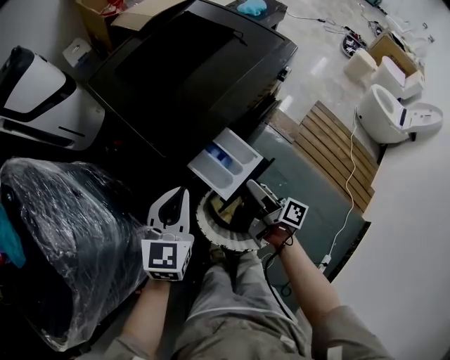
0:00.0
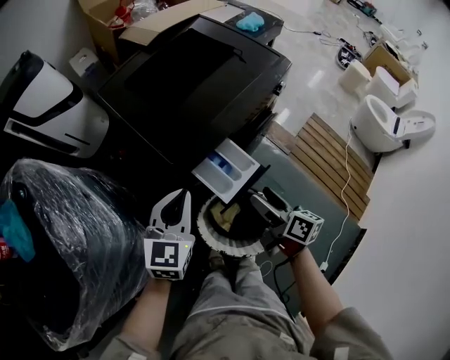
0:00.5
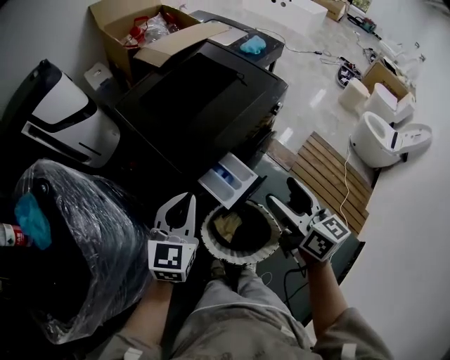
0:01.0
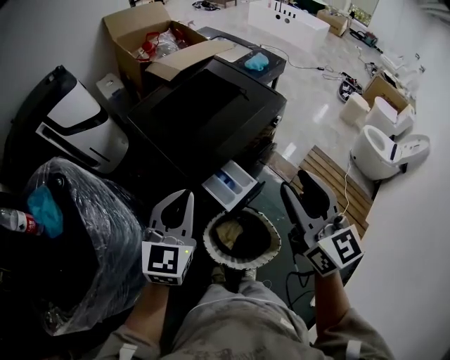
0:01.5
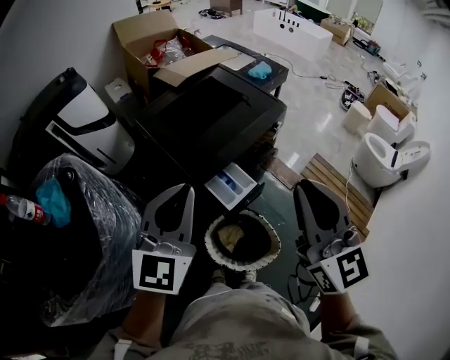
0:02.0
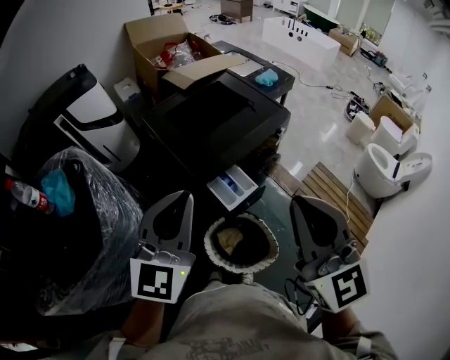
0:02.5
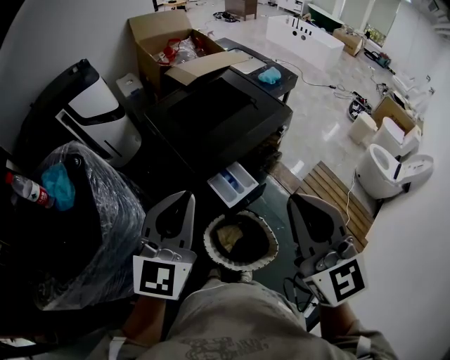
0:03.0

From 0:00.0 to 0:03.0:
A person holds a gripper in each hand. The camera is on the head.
From 0:00.0 to 0:01.5: The right gripper heads upward, covering roughly 35 cm, twists some 80 degrees counterclockwise, seen from behind, and closes; the left gripper is displaced upward by about 20 cm.
From 0:01.5 to 0:03.0: Both grippers travel together upward and backward, approximately 10 cm. The right gripper closes its fingers.

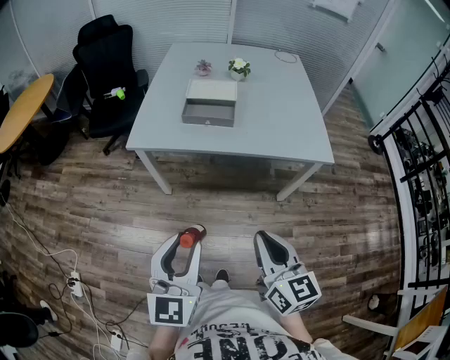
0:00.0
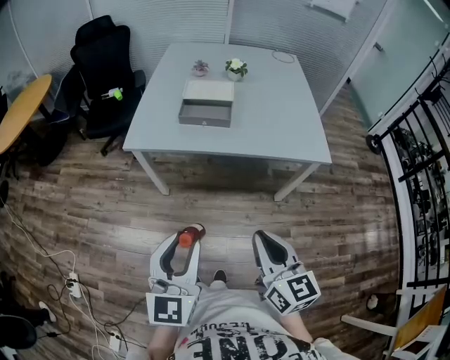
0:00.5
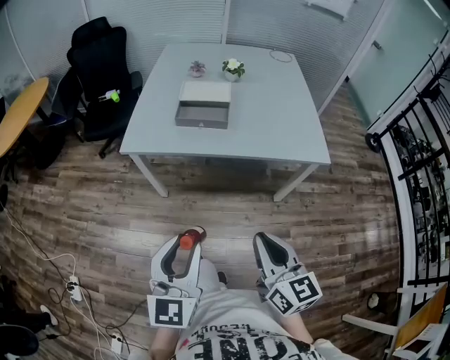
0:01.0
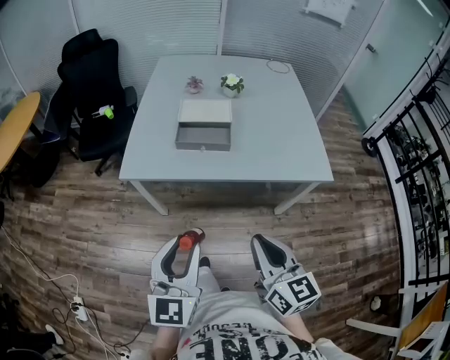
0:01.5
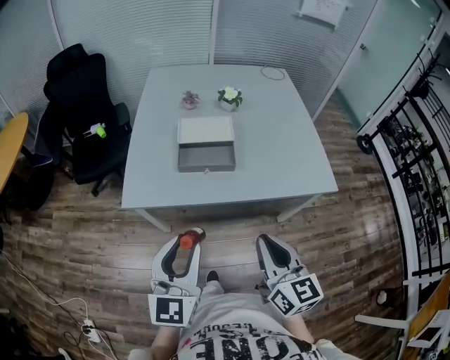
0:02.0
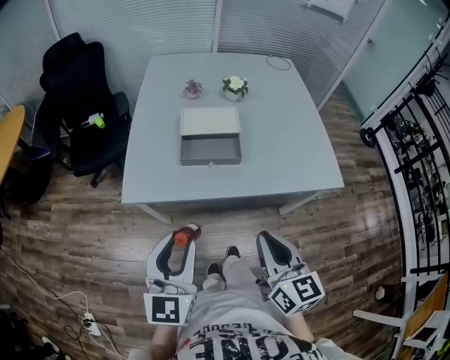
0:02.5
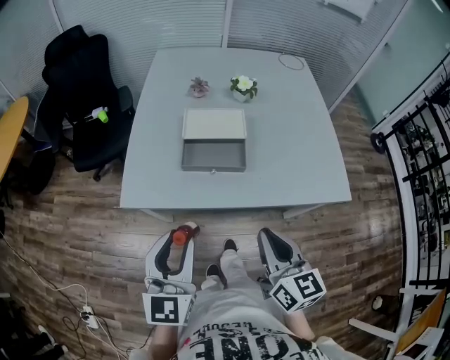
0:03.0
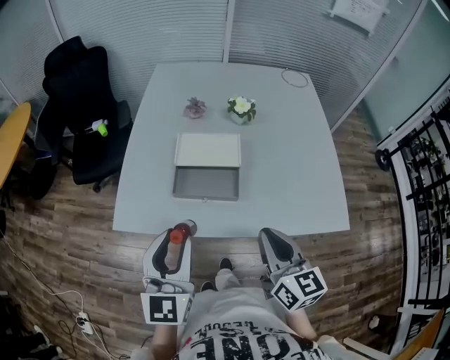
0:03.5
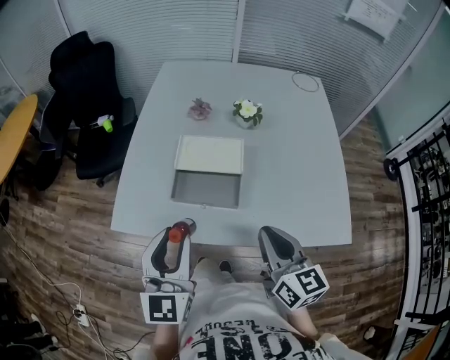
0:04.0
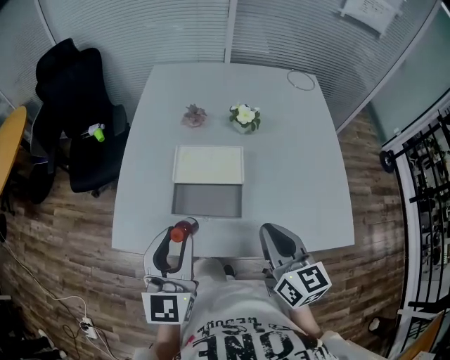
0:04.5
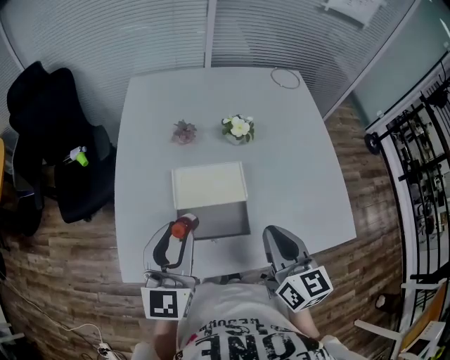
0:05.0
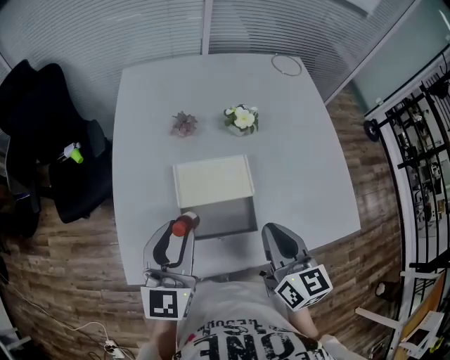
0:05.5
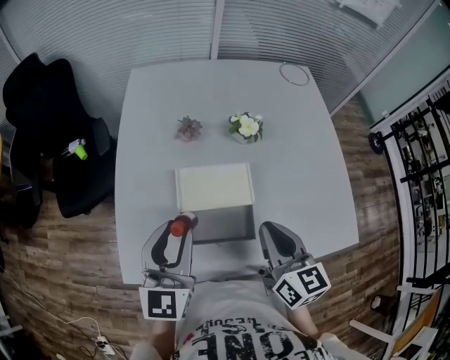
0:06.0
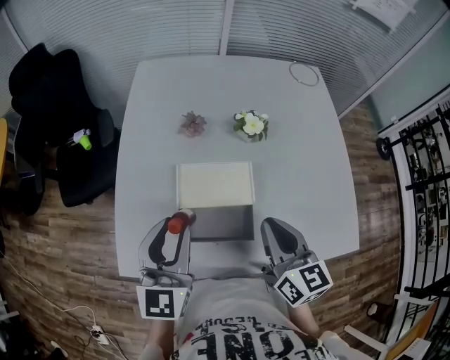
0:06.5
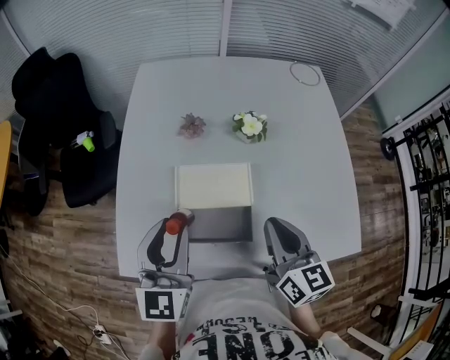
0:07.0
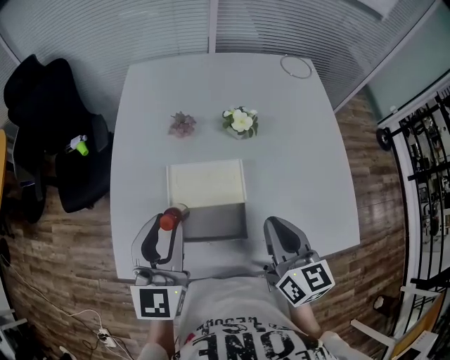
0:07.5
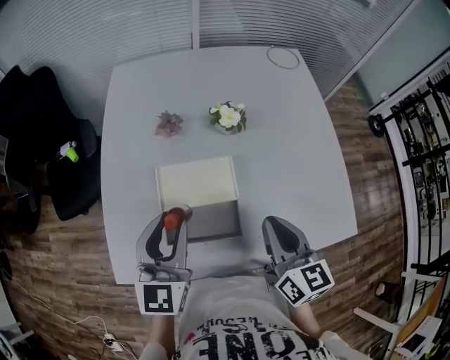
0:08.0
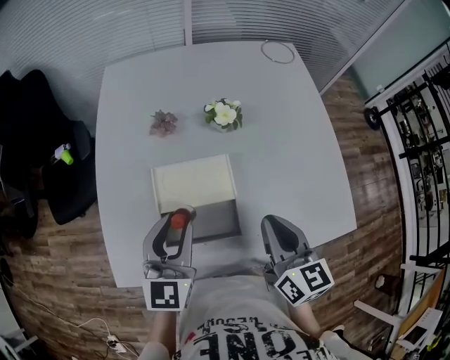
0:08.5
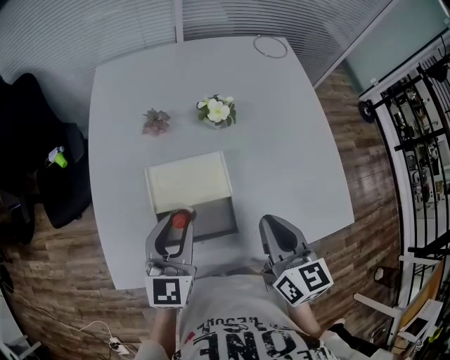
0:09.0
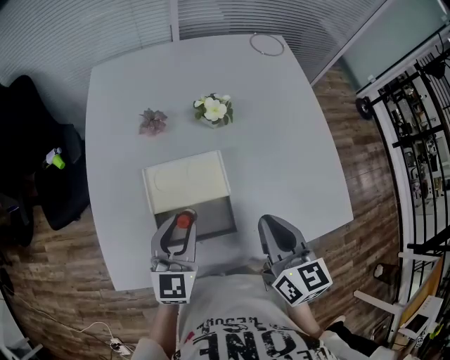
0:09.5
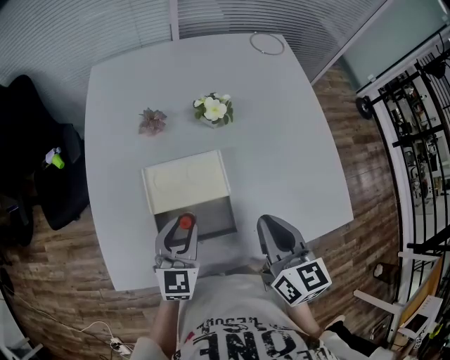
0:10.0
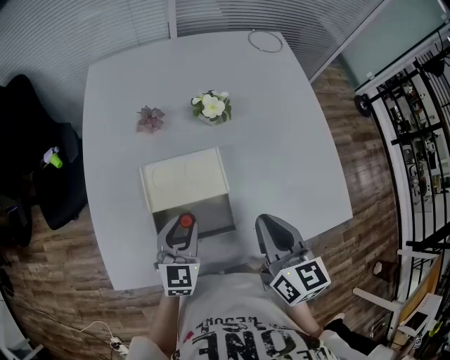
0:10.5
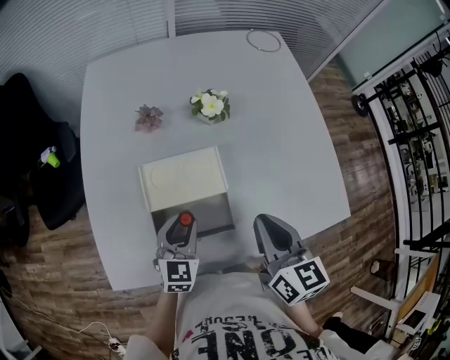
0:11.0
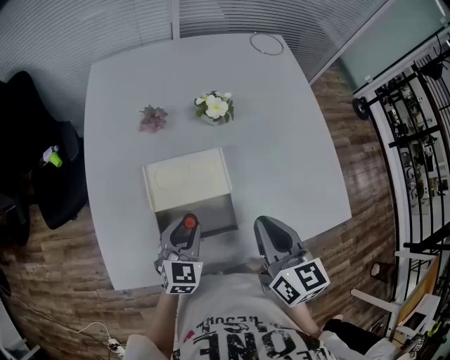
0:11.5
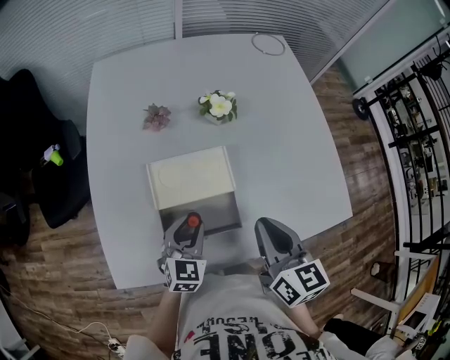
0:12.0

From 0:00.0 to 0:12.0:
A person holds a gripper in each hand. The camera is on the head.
From 0:00.0 to 0:02.0: Both grippers move forward, approximately 20 cm.
From 0:02.0 to 0:04.0: The grippers both shift forward by approximately 20 cm.
From 0:04.0 to 0:06.0: The left gripper shifts about 20 cm forward; the right gripper travels forward and to the left by some 15 cm.
From 0:06.0 to 0:08.0: The right gripper travels to the right by some 5 cm. The left gripper ends up roughly 5 cm from where it was.
From 0:08.0 to 0:10.0: The left gripper shifts about 15 cm downward.
From 0:10.0 to 0:12.0: The left gripper travels downward by approximately 5 cm.

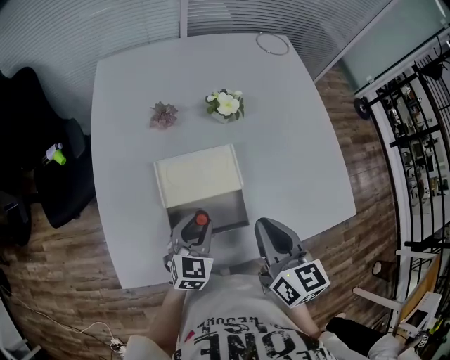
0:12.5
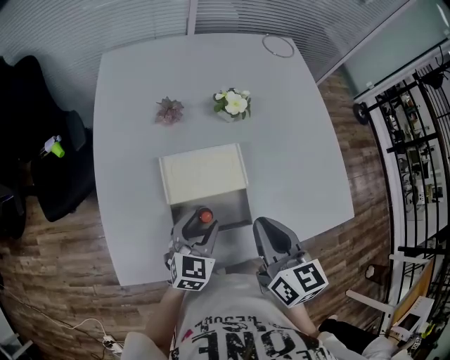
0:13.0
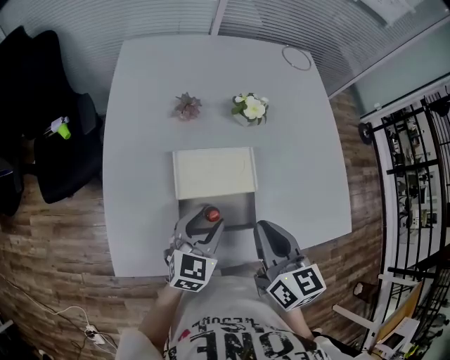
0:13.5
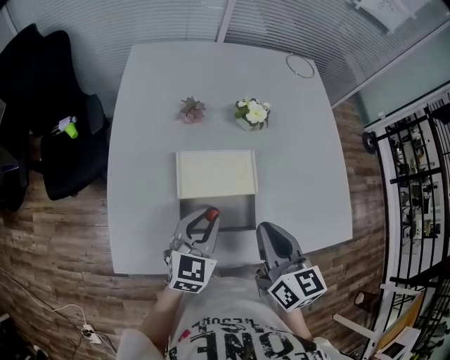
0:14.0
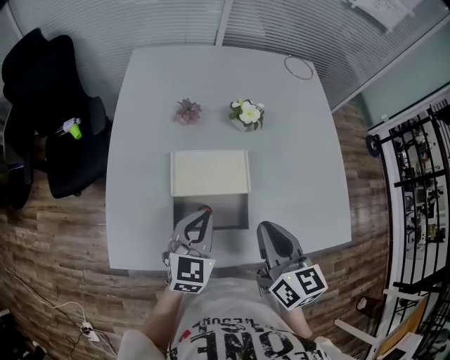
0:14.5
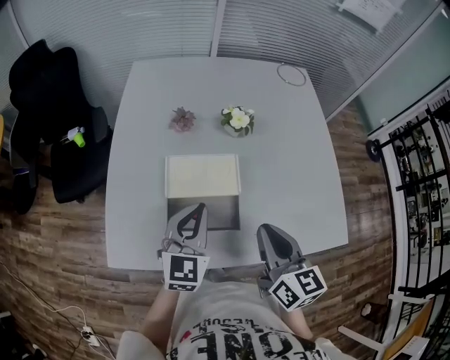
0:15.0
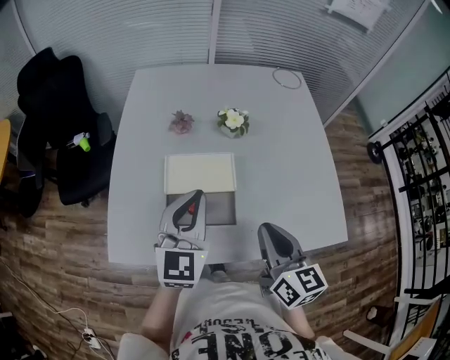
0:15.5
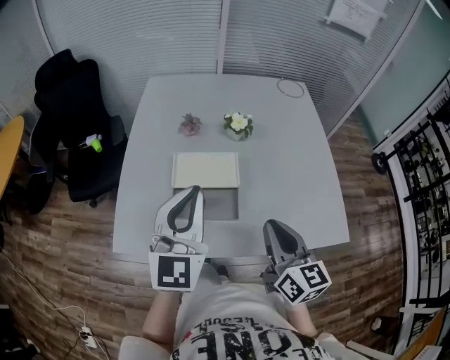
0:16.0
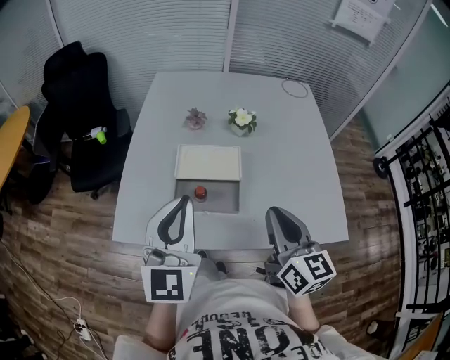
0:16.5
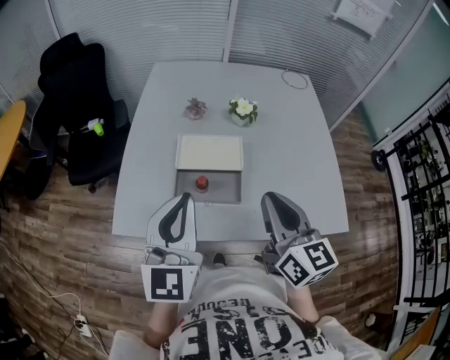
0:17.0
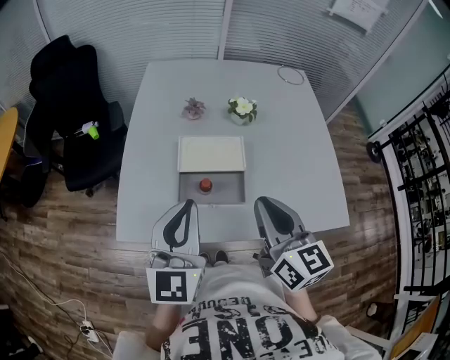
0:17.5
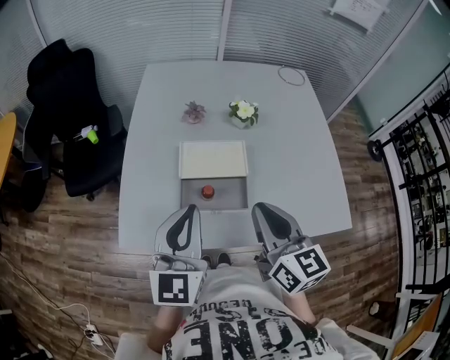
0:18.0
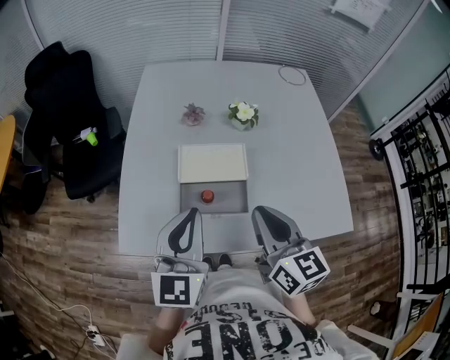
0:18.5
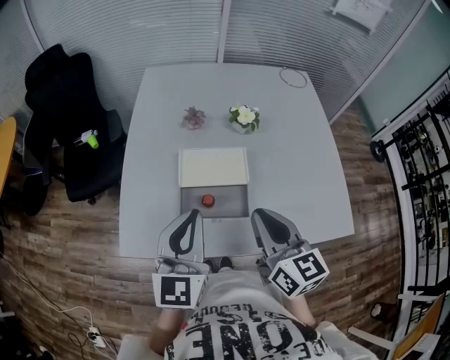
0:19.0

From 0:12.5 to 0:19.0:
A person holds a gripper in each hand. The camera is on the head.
From 0:12.5 to 0:14.5: The left gripper is displaced upward by approximately 10 cm, and closes.
From 0:14.5 to 0:17.0: The right gripper shifts about 10 cm upward and backward; the left gripper is displaced upward and backward by approximately 20 cm, and changes its angle by about 30 degrees.
From 0:17.0 to 0:19.0: The right gripper shifts by about 5 cm. Meanwhile the left gripper shifts approximately 5 cm forward.

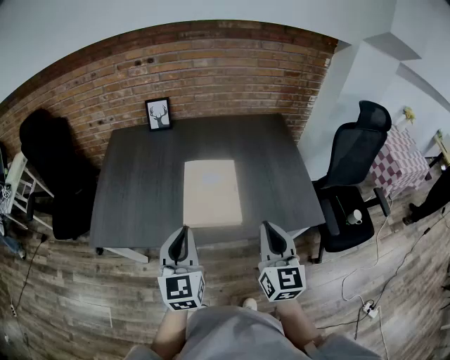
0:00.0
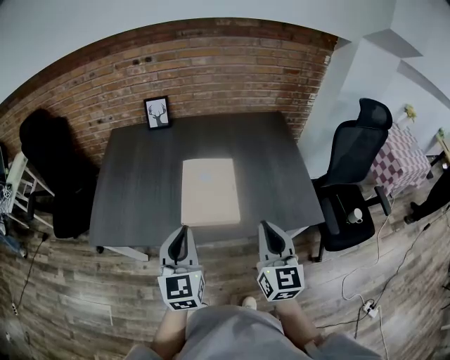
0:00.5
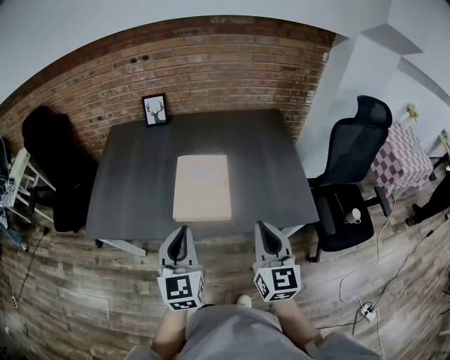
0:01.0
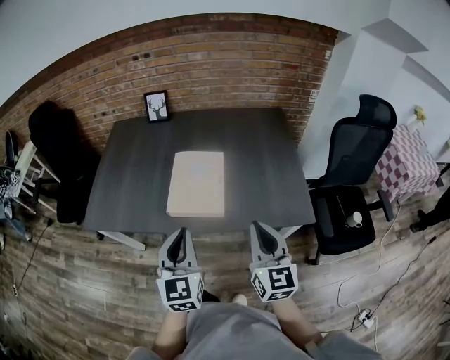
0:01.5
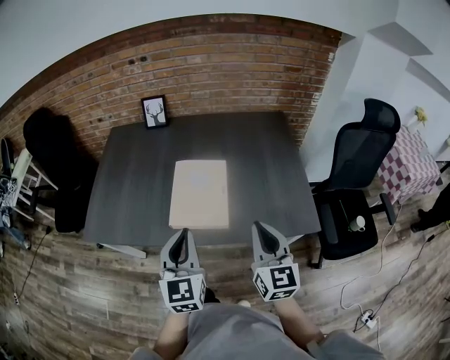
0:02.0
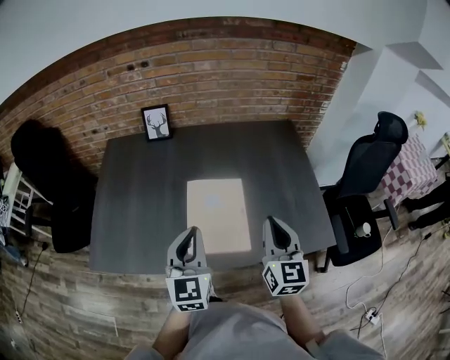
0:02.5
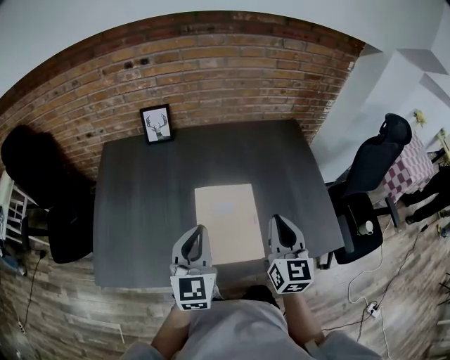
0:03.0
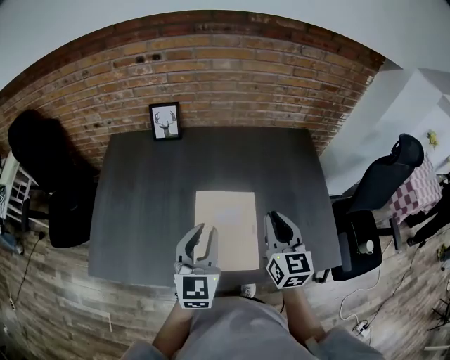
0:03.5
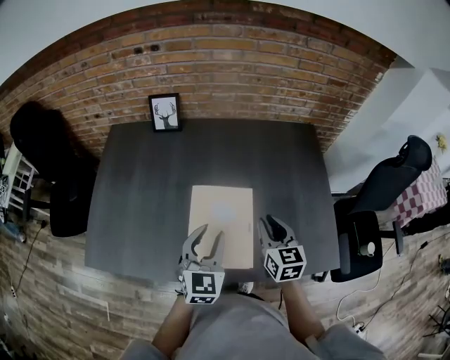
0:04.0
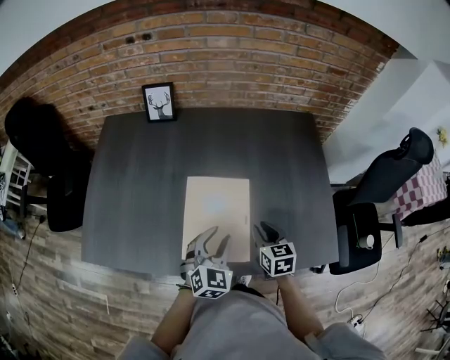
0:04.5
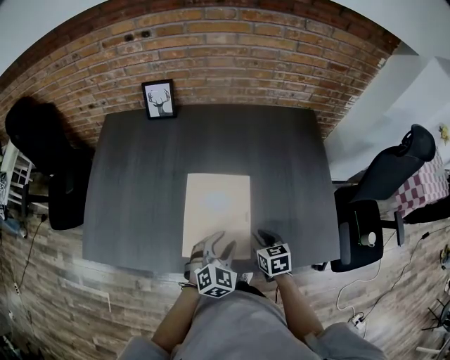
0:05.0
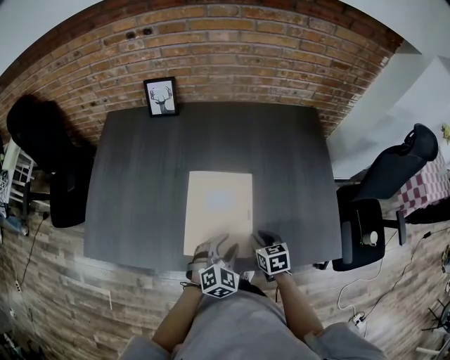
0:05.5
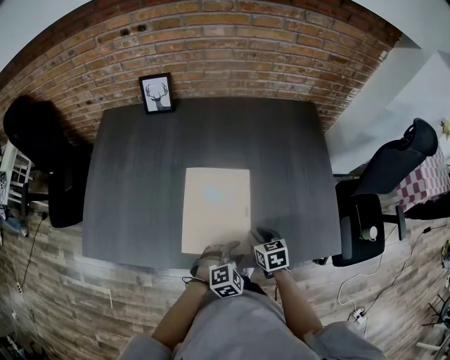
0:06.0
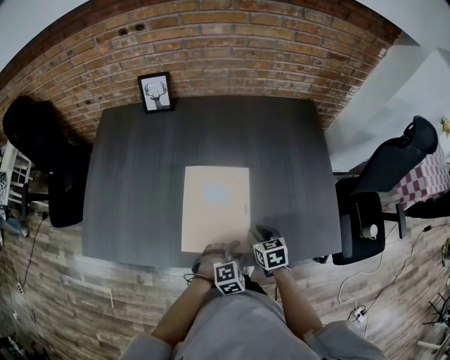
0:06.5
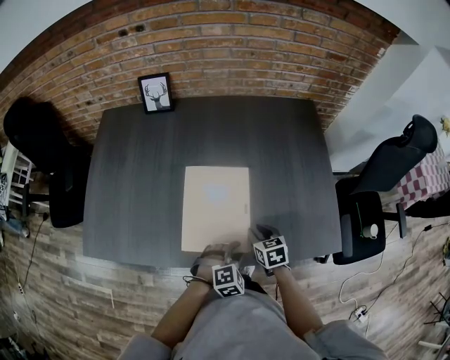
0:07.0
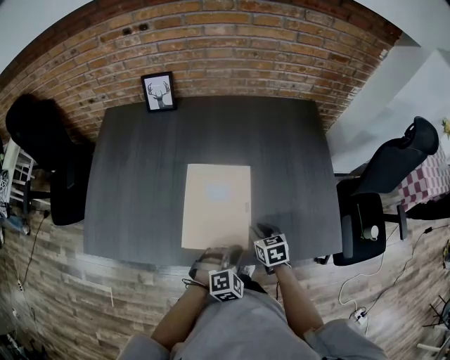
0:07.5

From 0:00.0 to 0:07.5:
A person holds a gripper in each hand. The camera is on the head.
From 0:00.0 to 0:02.0: The grippers both shift to the right by some 5 cm.
From 0:02.0 to 0:04.0: The left gripper shifts roughly 20 cm forward, and opens; the right gripper travels forward and downward by about 25 cm.
From 0:04.0 to 0:05.5: The left gripper goes about 15 cm downward, to the right and backward, and changes its angle by roughly 30 degrees; the right gripper moves downward, about 20 cm, and turns by some 30 degrees.
From 0:05.5 to 0:07.5: The left gripper ends up approximately 5 cm from where it was, swivels approximately 20 degrees, and closes.
